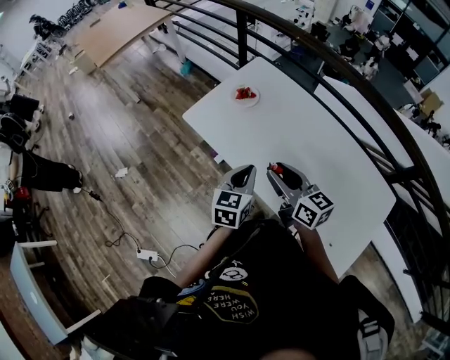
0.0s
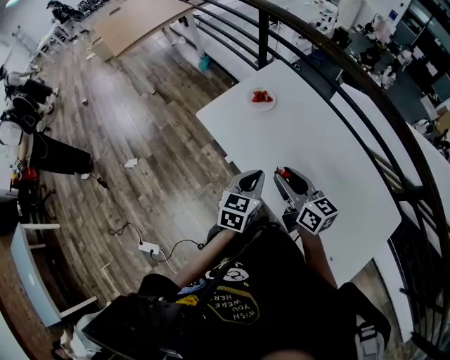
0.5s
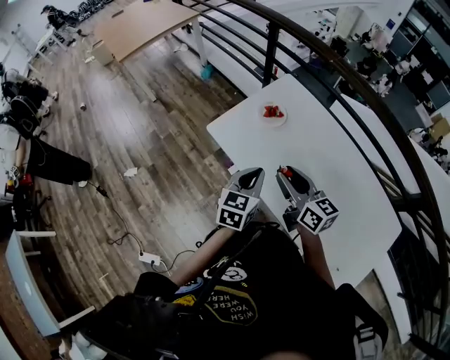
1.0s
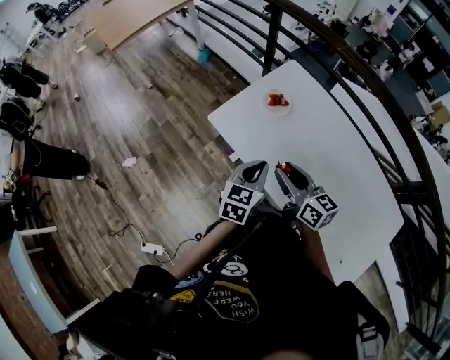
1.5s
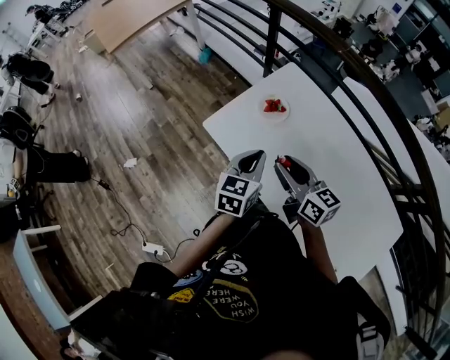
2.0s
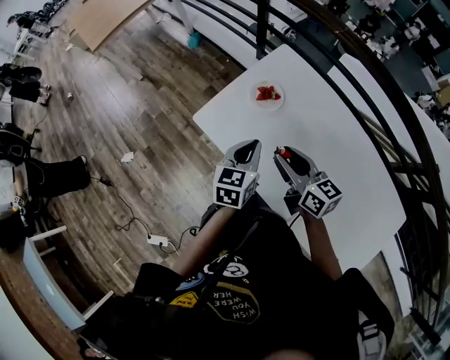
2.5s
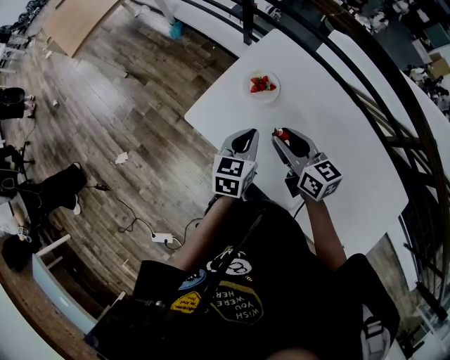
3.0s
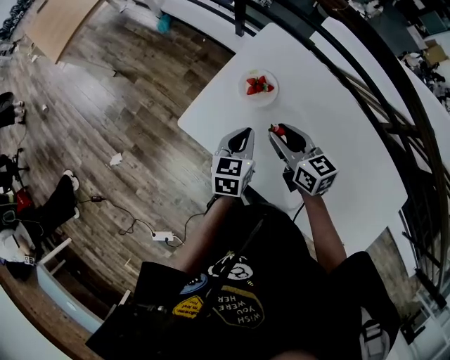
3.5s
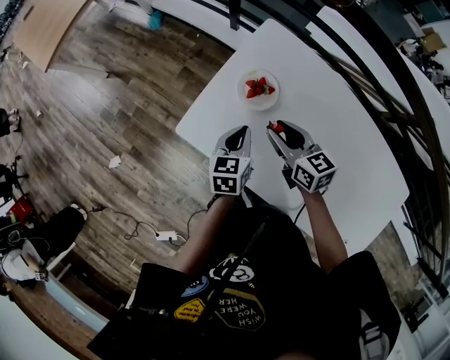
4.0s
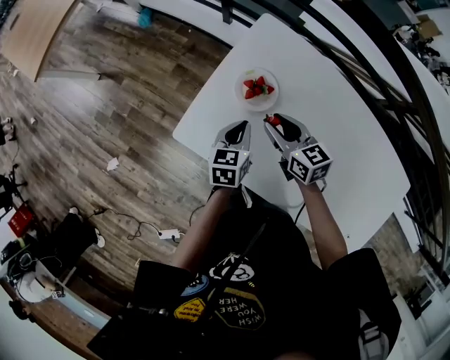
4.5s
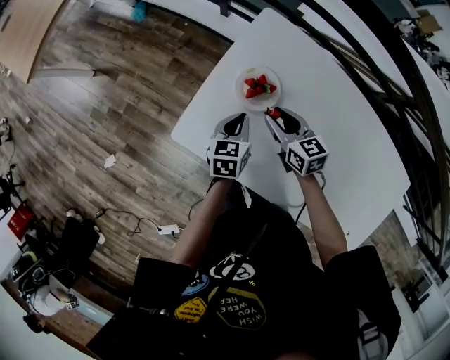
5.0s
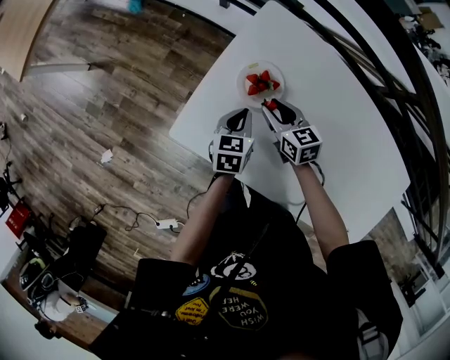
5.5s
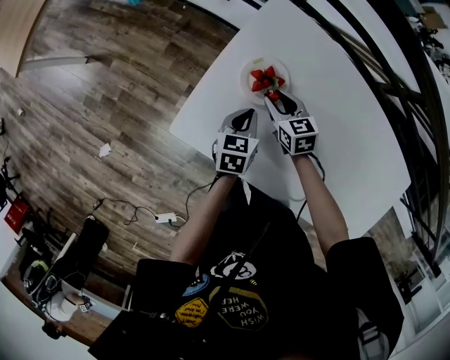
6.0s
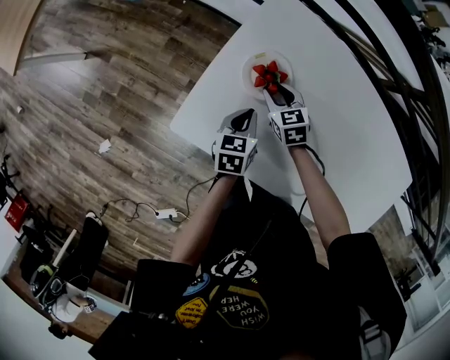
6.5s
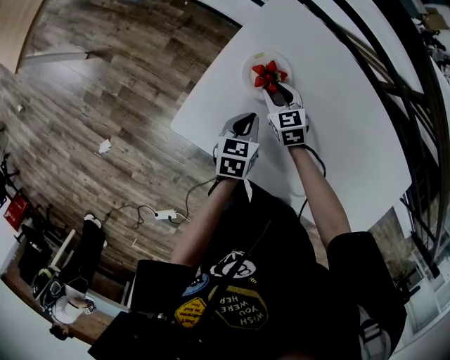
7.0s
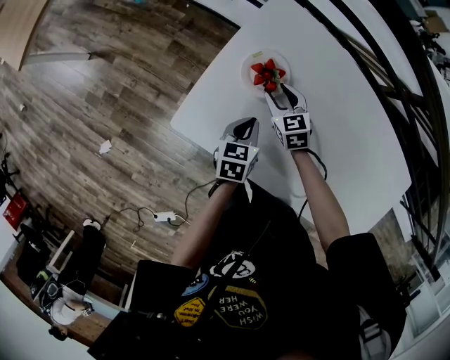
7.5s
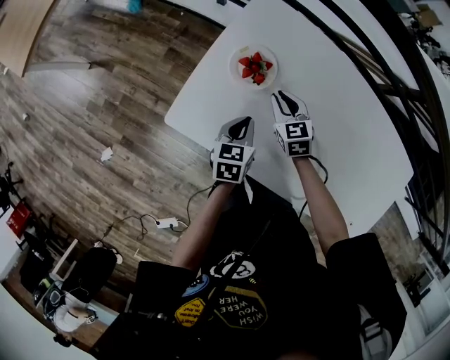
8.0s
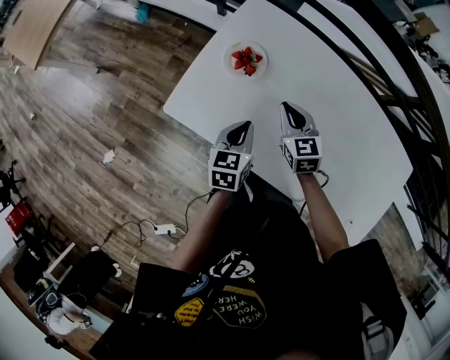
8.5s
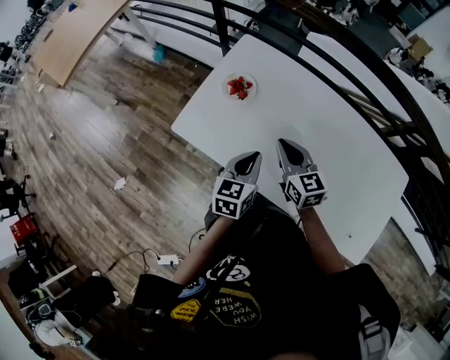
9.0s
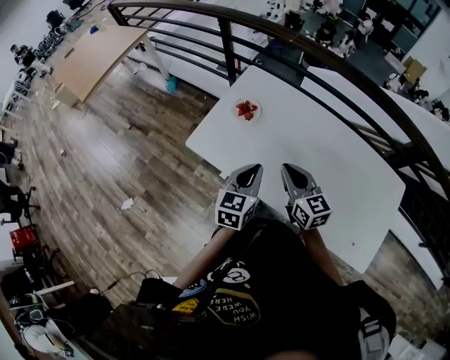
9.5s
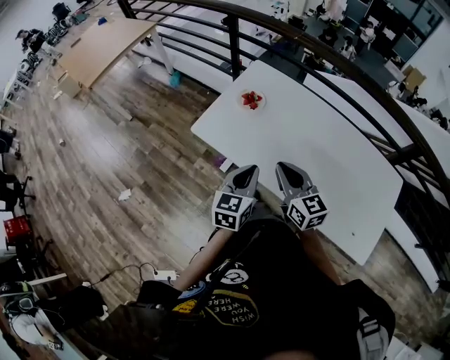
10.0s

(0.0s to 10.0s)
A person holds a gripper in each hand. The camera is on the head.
0.0s - 2.0s: The right gripper is displaced forward and to the left by roughly 20 cm. Meanwhile the left gripper shifts some 20 cm forward.
2.0s - 4.0s: The grippers both shift forward and downward by approximately 20 cm.
4.0s - 6.0s: The left gripper heads downward, covering about 10 cm. Meanwhile the right gripper goes some 20 cm downward and forward, and changes its angle by some 20 degrees.
6.0s - 8.0s: The left gripper is displaced backward by about 5 cm, while the right gripper ends up approximately 5 cm from where it was.
8.0s - 10.0s: The two grippers go some 40 cm backward and upward. The left gripper swivels about 30 degrees. The right gripper changes its angle by some 30 degrees.

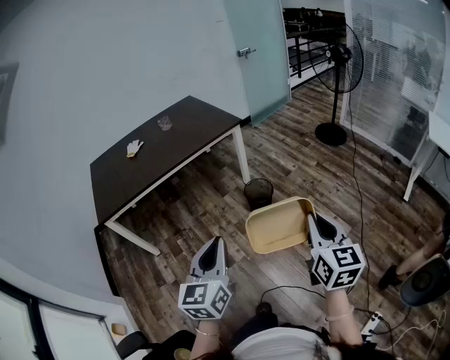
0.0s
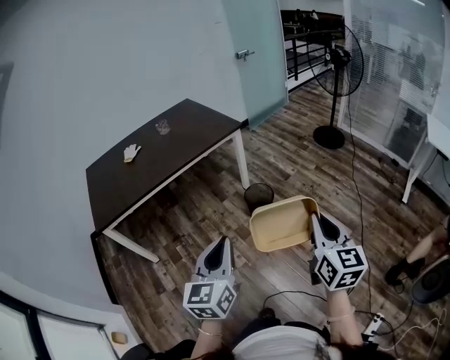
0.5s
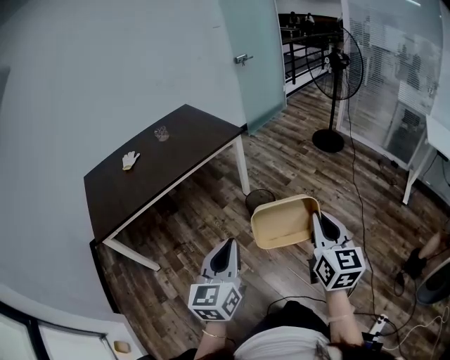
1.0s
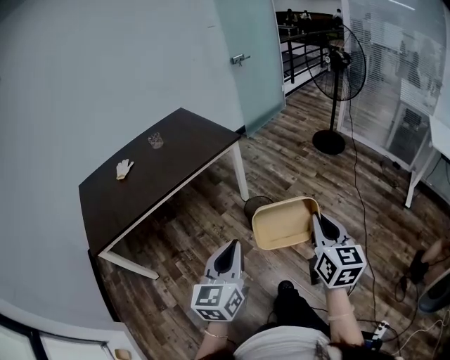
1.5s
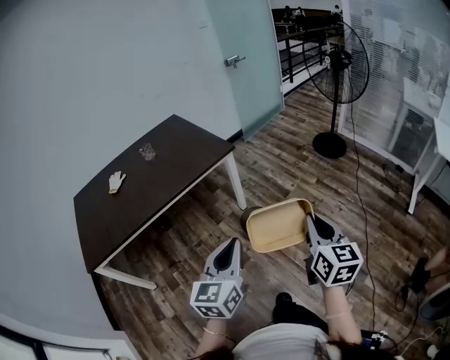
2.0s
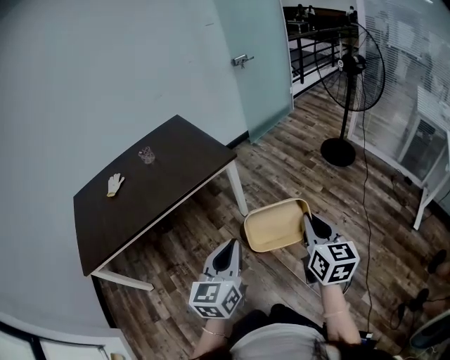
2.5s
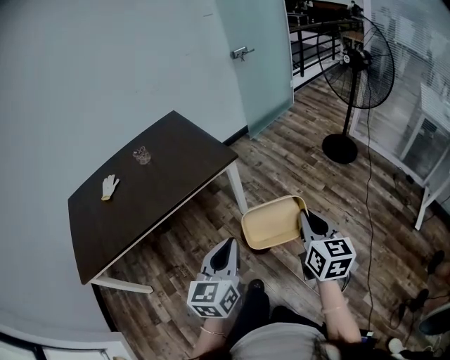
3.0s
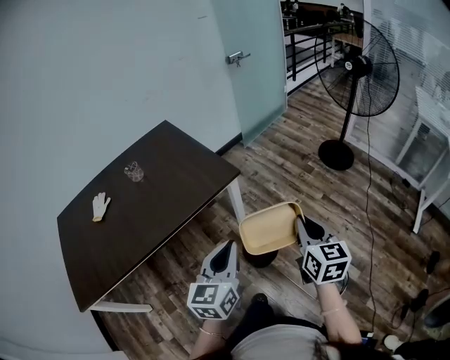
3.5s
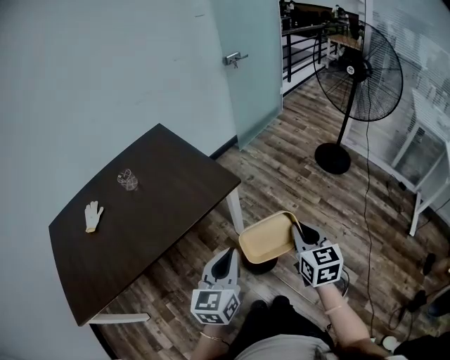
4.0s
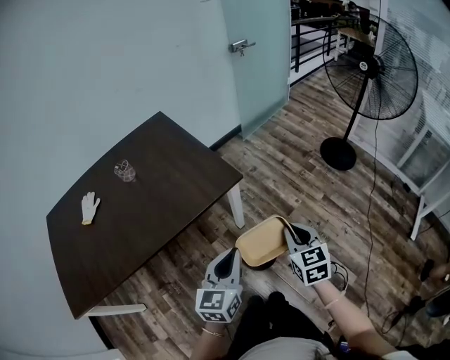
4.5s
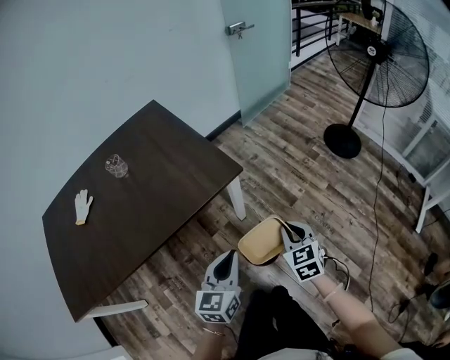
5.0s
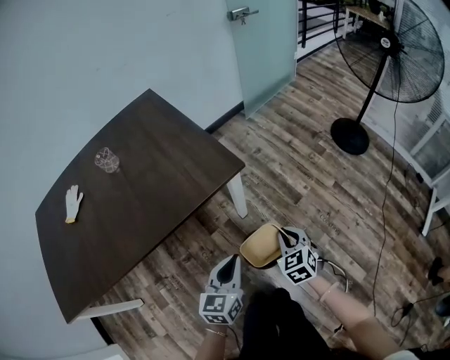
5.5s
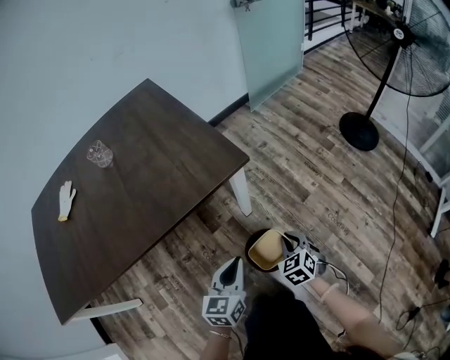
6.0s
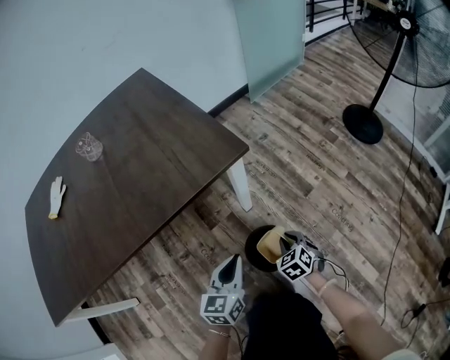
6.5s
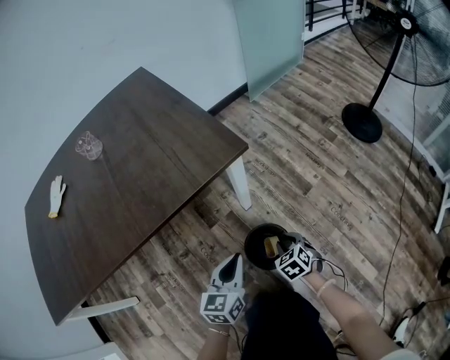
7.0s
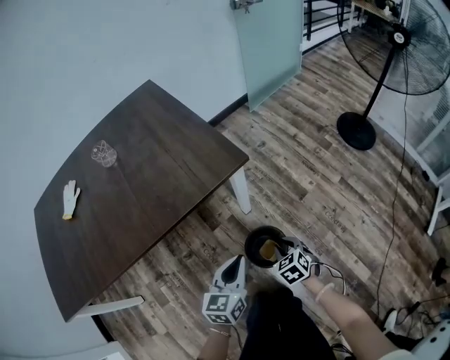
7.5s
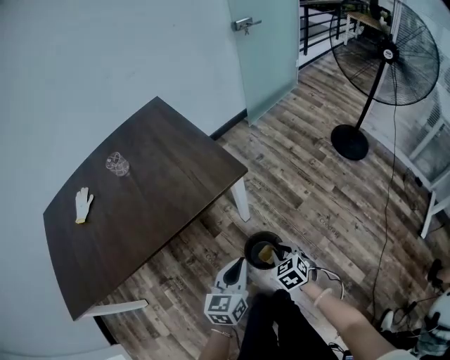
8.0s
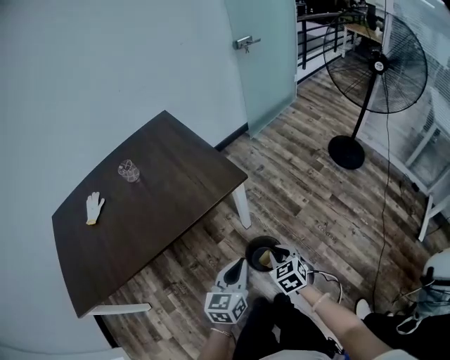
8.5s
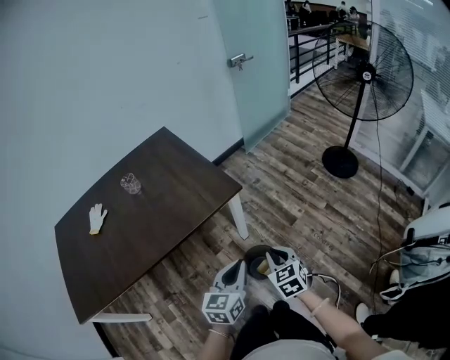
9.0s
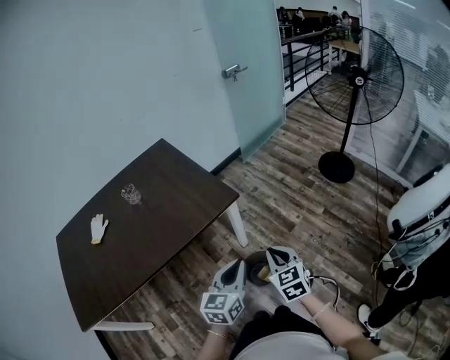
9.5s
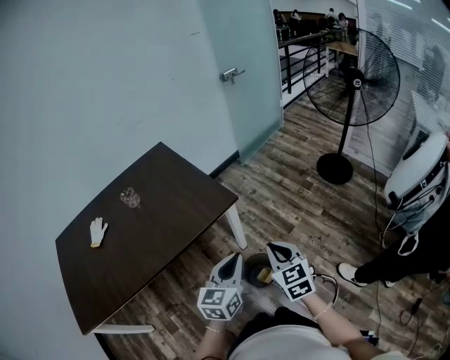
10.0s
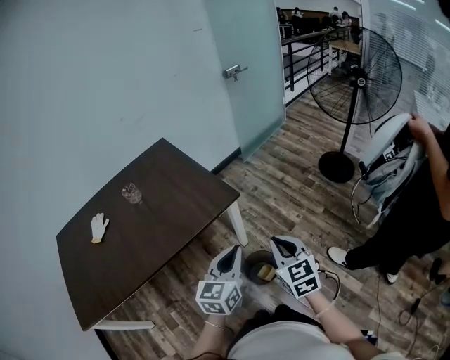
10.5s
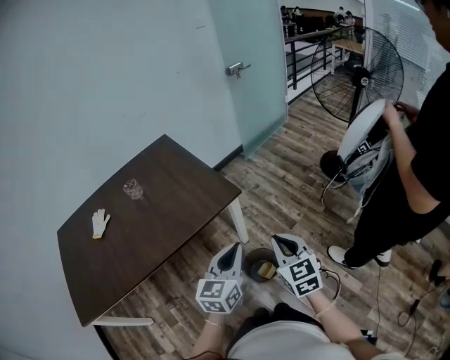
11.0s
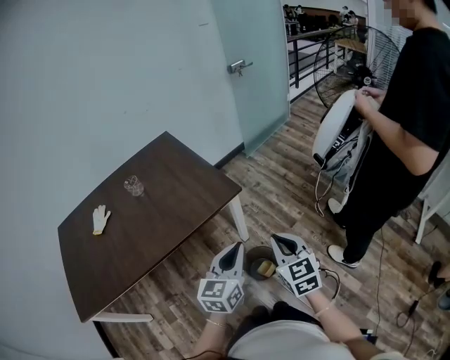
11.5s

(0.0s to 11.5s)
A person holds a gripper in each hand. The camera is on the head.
0.0s - 2.0s: The two grippers go roughly 35 cm forward.
2.0s - 4.0s: The pair of grippers is taken forward, some 40 cm.
4.0s - 6.0s: The grippers both shift downward and forward by about 40 cm. The right gripper turns by about 40 degrees.
6.0s - 7.5s: The right gripper moves about 15 cm downward and comes back.
7.5s - 9.5s: The left gripper travels upward and backward by about 30 cm. The right gripper moves upward, some 35 cm, rotates approximately 30 degrees, and closes up.
9.5s - 11.5s: The right gripper moves upward, about 5 cm.

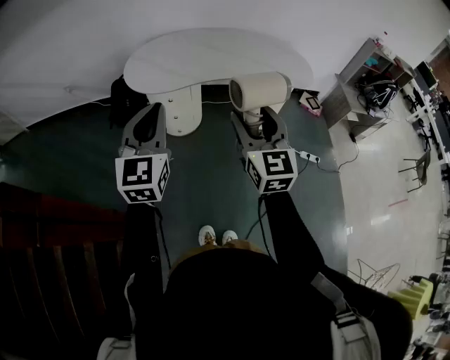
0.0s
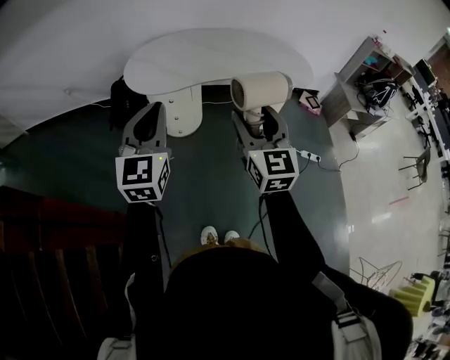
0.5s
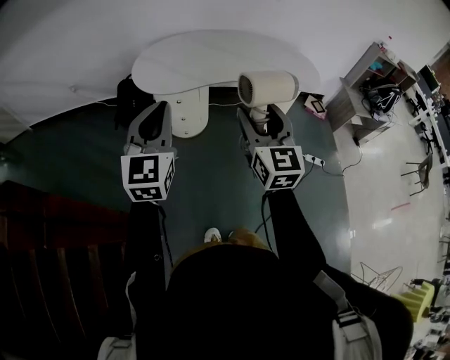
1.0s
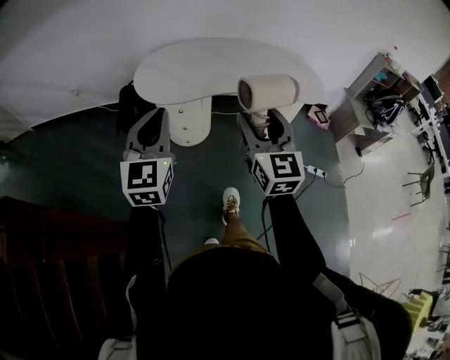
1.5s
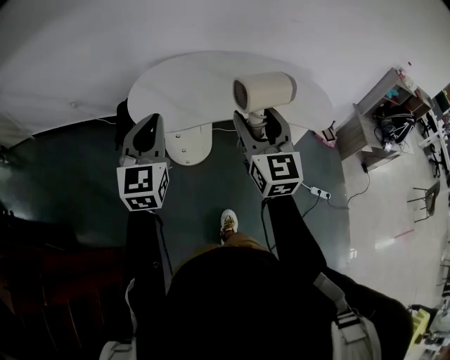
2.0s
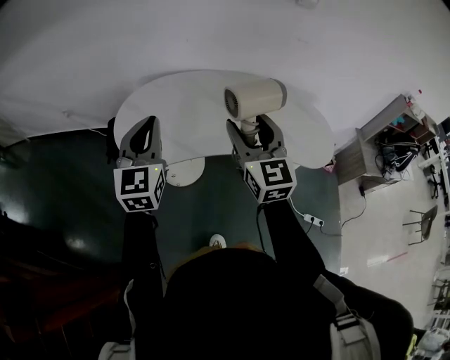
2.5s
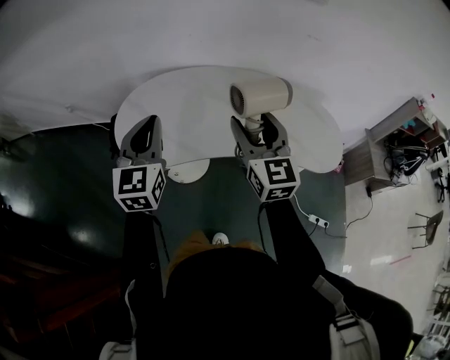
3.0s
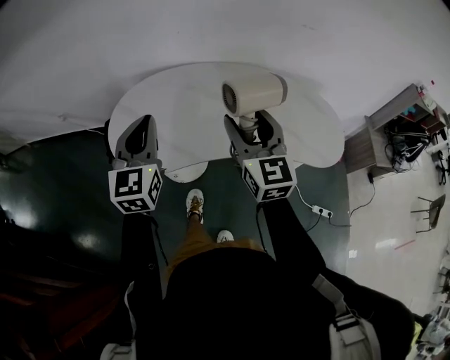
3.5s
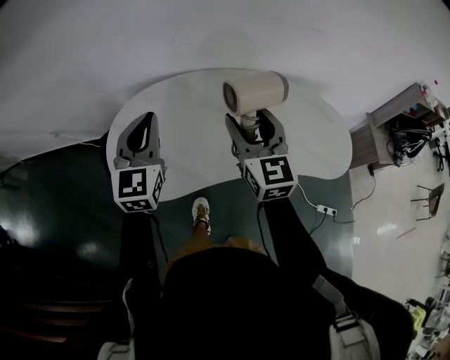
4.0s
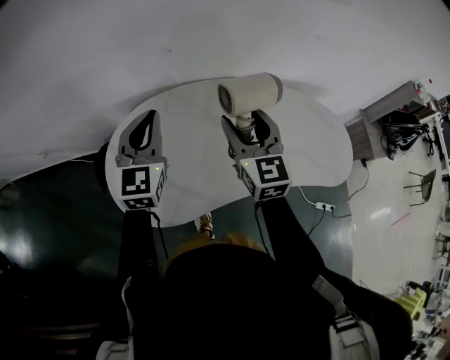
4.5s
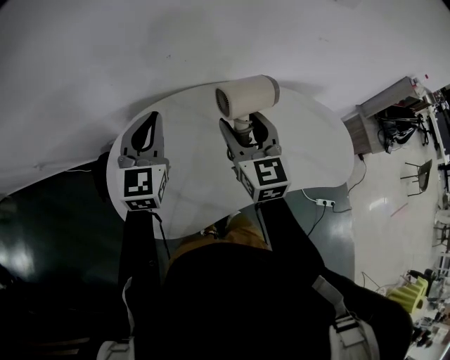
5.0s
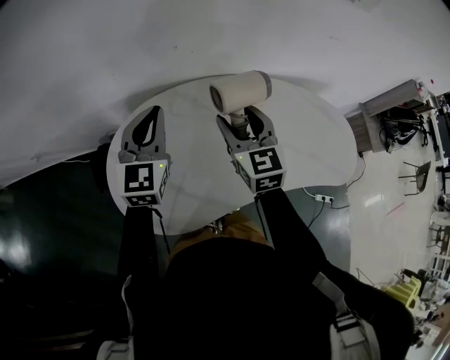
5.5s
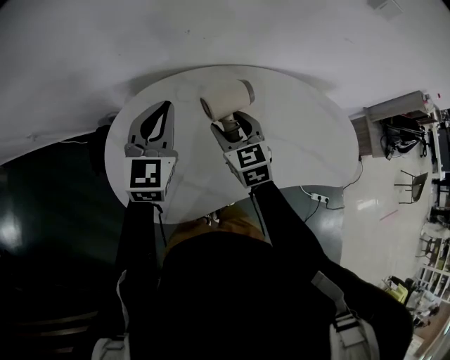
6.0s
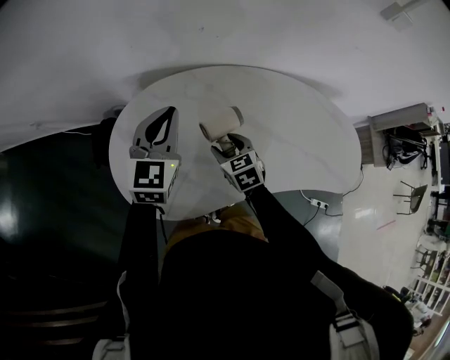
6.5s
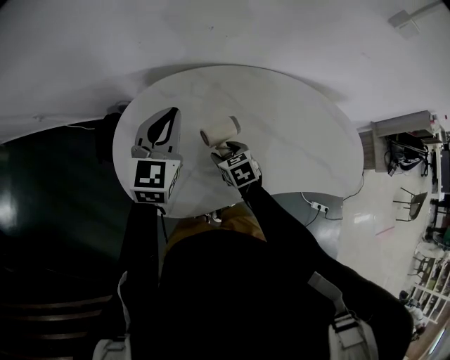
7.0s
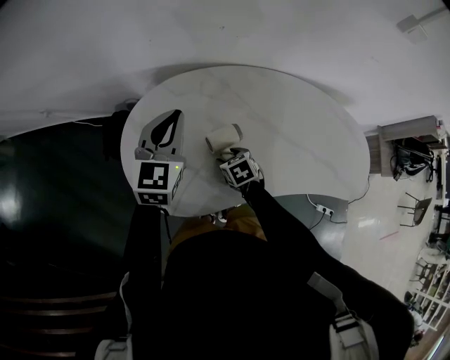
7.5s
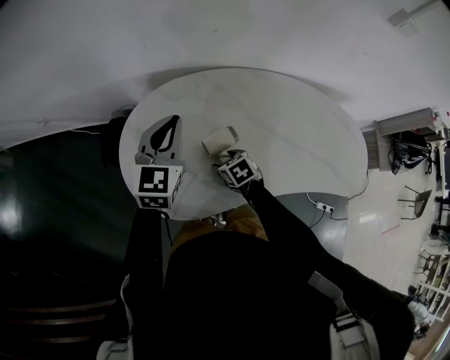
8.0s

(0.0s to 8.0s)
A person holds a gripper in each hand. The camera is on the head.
0.0s - 2.0s: The grippers both shift forward by some 20 cm.
2.0s - 4.0s: Both grippers move forward, some 35 cm.
4.0s - 6.0s: The left gripper goes some 15 cm forward and downward. The right gripper goes some 25 cm downward, to the left and forward, and rotates about 30 degrees.
6.0s - 8.0s: The right gripper is displaced downward by about 20 cm, and angles its fingers downward, by some 30 degrees. Meanwhile the left gripper ends up some 5 cm from where it was.
